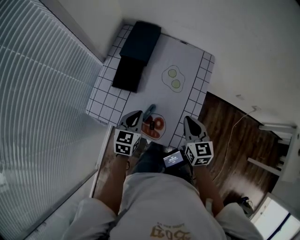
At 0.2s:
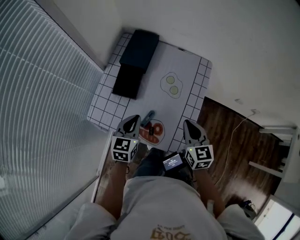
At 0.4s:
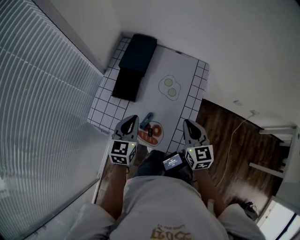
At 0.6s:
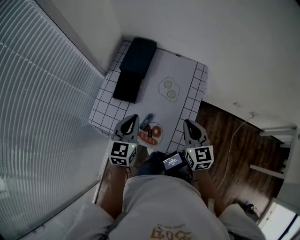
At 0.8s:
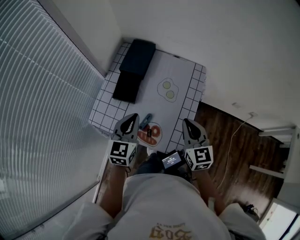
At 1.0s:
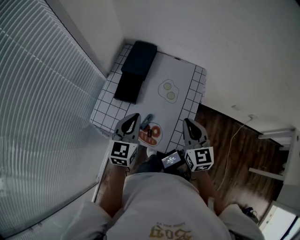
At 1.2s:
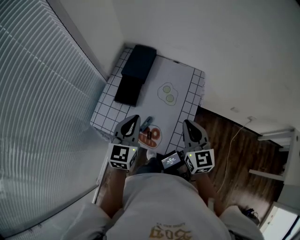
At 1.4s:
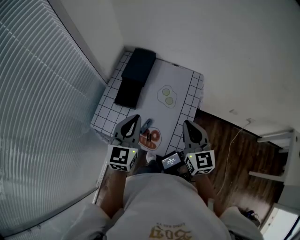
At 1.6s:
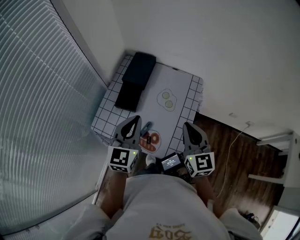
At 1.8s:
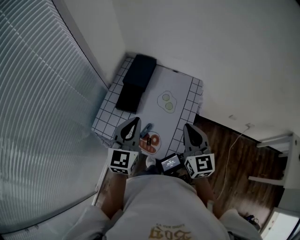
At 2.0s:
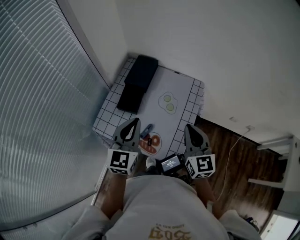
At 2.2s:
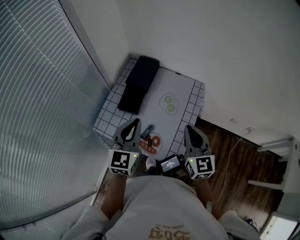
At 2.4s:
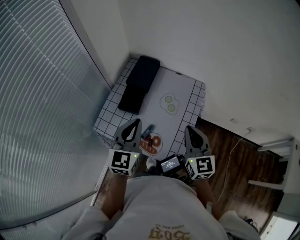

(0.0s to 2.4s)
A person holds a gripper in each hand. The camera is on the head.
0.0s - 1.2s: Both grippers move upward, approximately 15 cm. The left gripper rotates about 20 degrees.
1.2s - 2.4s: The left gripper is displaced upward by about 5 cm.

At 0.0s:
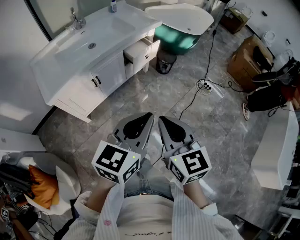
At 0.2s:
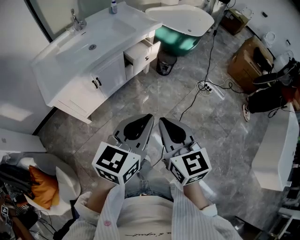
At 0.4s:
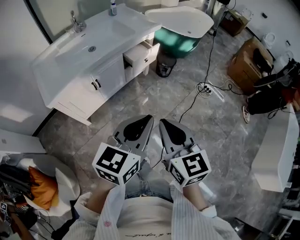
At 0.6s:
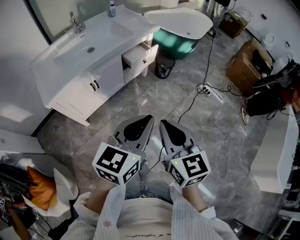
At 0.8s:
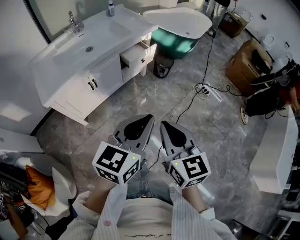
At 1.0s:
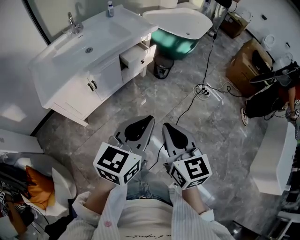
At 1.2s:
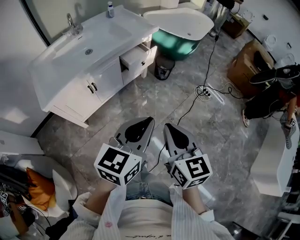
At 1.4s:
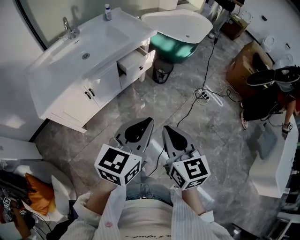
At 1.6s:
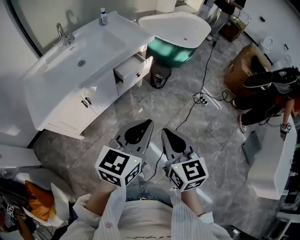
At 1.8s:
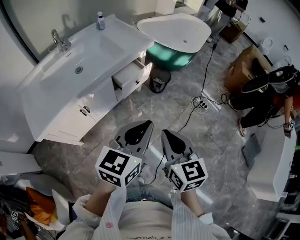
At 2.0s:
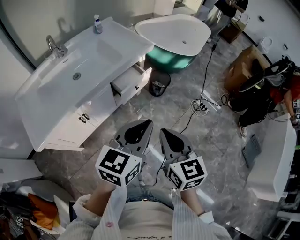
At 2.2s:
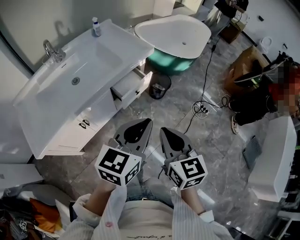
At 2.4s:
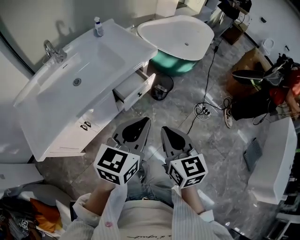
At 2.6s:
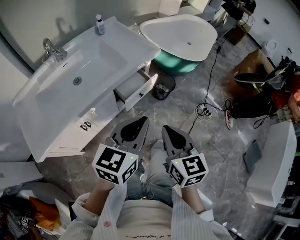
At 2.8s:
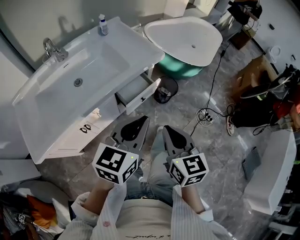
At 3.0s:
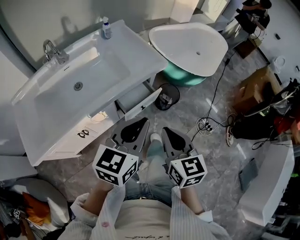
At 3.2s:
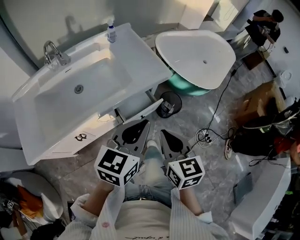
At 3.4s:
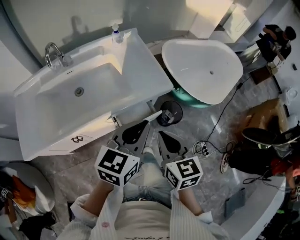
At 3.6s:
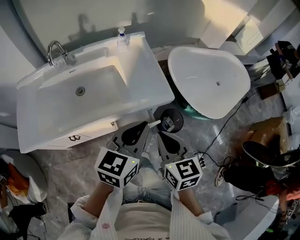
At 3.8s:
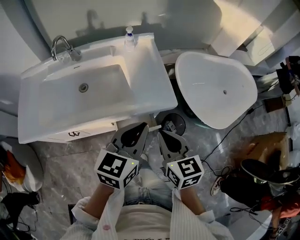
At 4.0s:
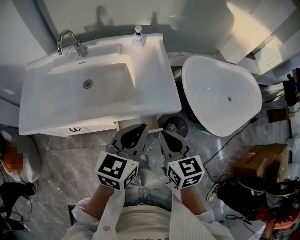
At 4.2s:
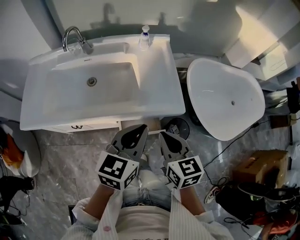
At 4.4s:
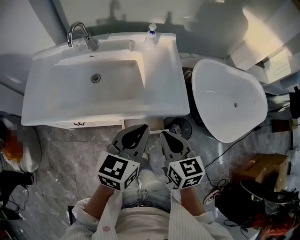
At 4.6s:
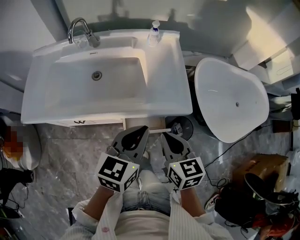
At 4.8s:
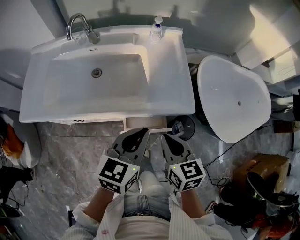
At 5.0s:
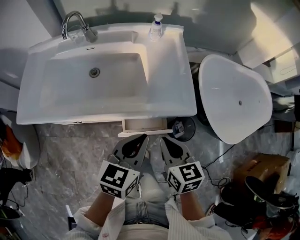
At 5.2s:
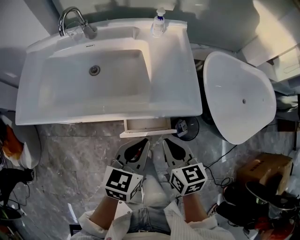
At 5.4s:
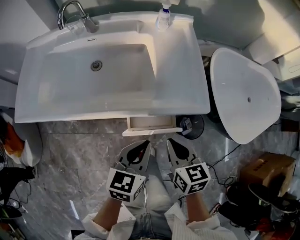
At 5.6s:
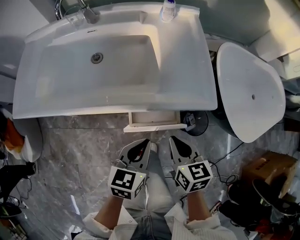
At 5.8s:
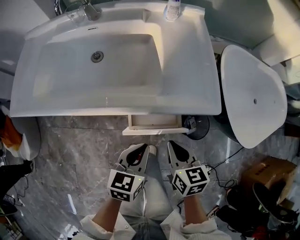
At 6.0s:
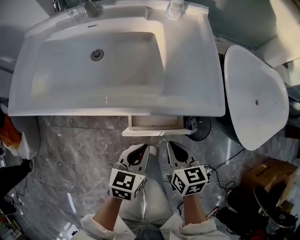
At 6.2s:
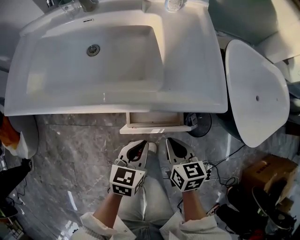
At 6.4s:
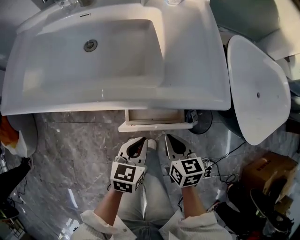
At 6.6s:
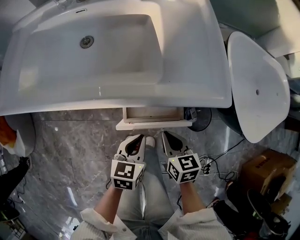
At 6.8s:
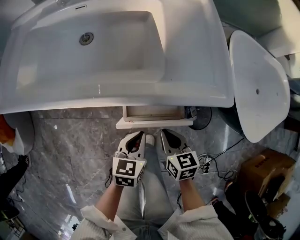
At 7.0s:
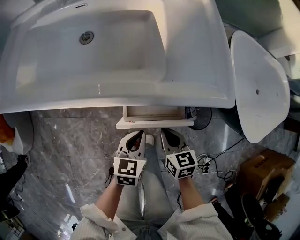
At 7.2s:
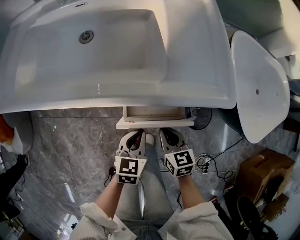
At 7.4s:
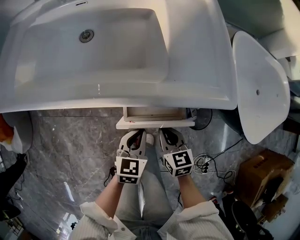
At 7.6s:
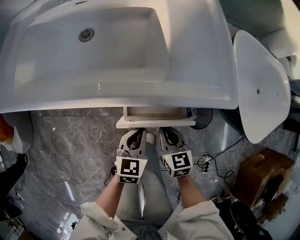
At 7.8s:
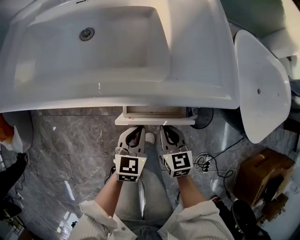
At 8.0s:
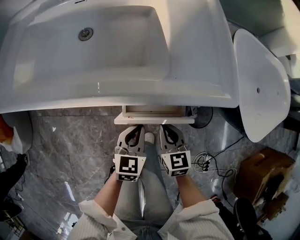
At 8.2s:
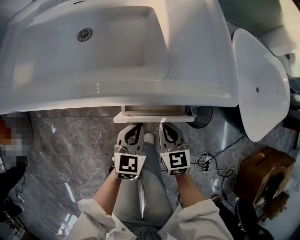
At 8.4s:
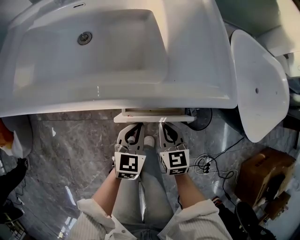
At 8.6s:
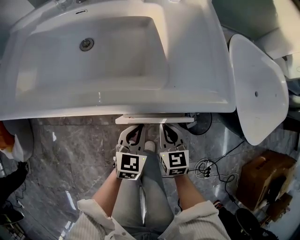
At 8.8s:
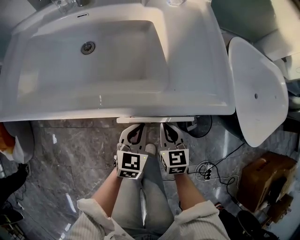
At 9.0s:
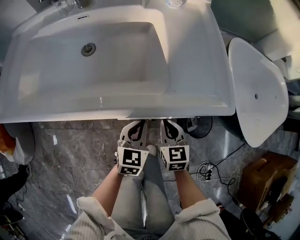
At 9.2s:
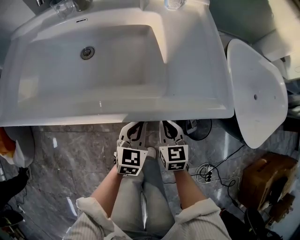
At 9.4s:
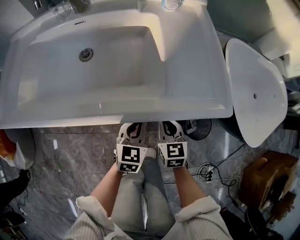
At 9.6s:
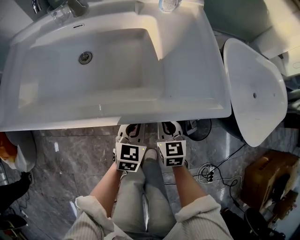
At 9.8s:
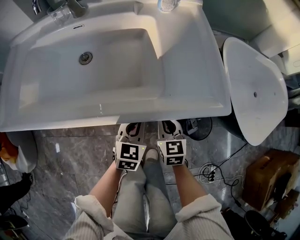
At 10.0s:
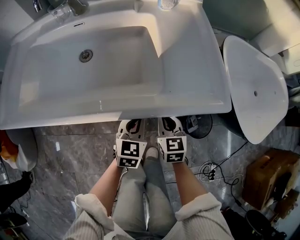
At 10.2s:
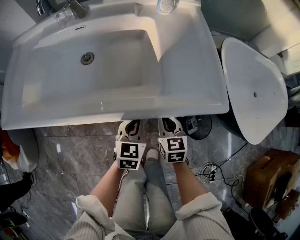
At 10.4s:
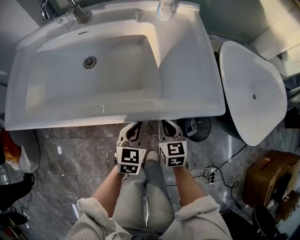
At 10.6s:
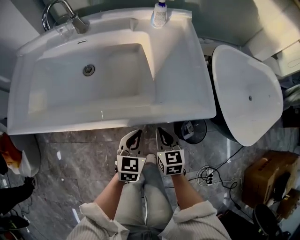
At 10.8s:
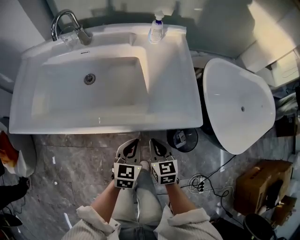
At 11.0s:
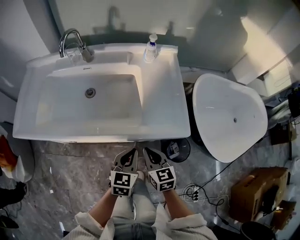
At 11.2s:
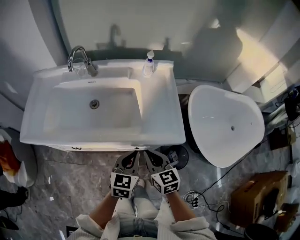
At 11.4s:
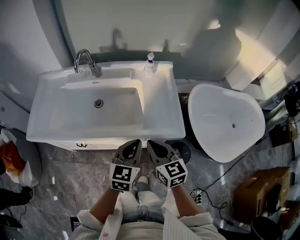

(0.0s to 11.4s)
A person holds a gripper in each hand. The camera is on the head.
0.0s - 1.4s: The right gripper heads forward and to the right, covering approximately 10 cm; the left gripper shifts approximately 5 cm forward.
1.4s - 2.8s: Both grippers travel together forward, some 30 cm.
2.8s - 4.2s: The left gripper shifts by about 20 cm, and turns by roughly 40 degrees. Meanwhile the right gripper ends up some 25 cm from where it was, and rotates approximately 40 degrees.
4.2s - 5.6s: Both grippers travel together downward, about 15 cm.
5.6s - 7.2s: The two grippers go approximately 15 cm downward.
7.2s - 8.6s: The grippers make only small movements.
8.6s - 10.0s: The two grippers go some 5 cm forward.
10.0s - 11.4s: The grippers both shift upward by some 30 cm.

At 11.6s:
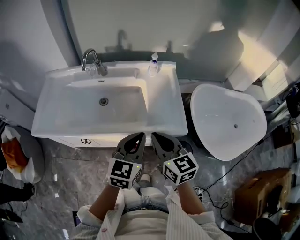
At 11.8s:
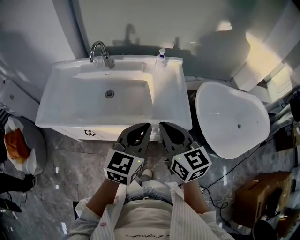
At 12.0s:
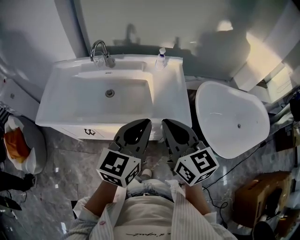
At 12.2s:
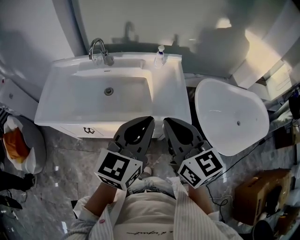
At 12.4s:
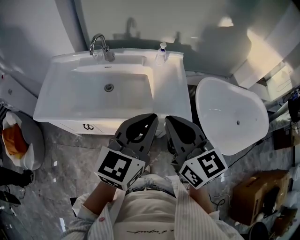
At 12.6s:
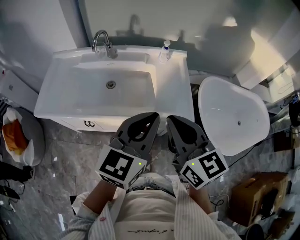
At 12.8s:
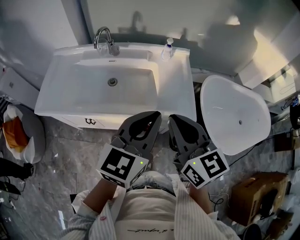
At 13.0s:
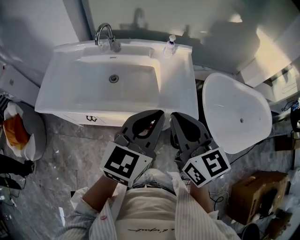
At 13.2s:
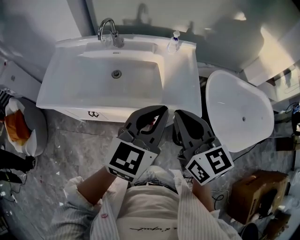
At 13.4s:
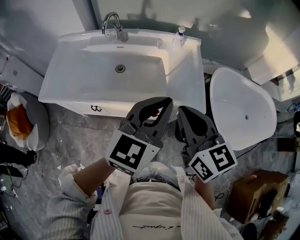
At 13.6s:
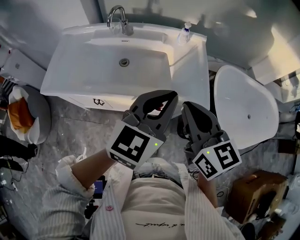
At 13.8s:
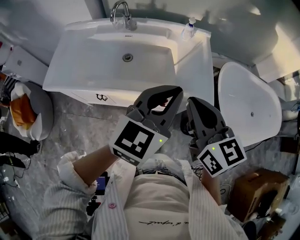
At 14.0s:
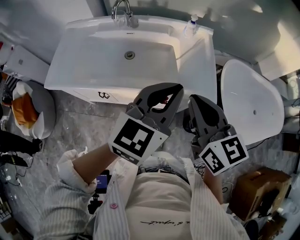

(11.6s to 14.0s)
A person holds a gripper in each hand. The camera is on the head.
11.6s - 12.8s: The grippers both shift upward by approximately 10 cm.
12.8s - 14.0s: The grippers move only a little.

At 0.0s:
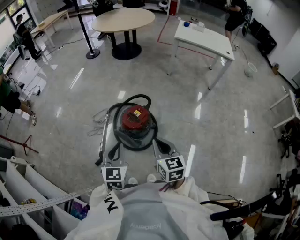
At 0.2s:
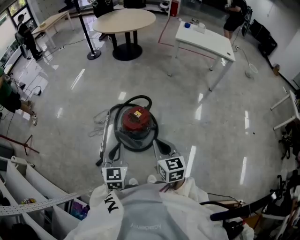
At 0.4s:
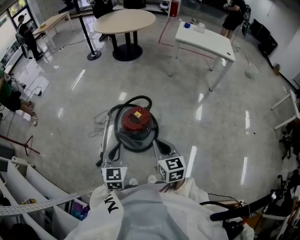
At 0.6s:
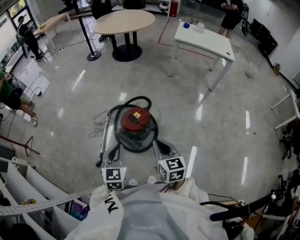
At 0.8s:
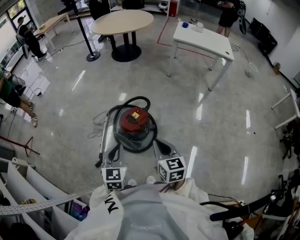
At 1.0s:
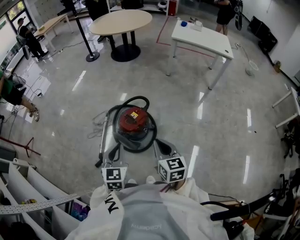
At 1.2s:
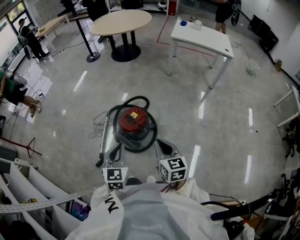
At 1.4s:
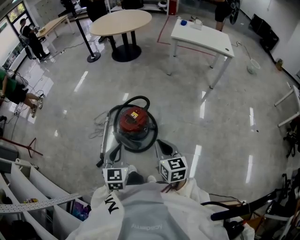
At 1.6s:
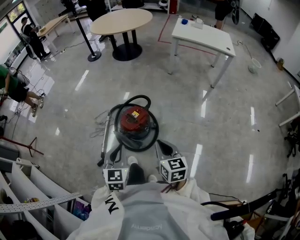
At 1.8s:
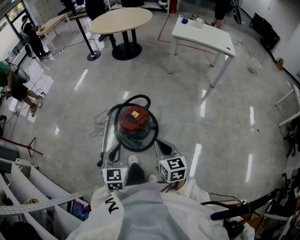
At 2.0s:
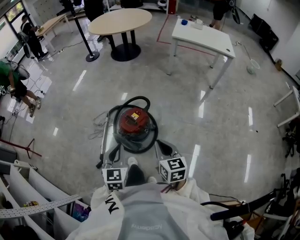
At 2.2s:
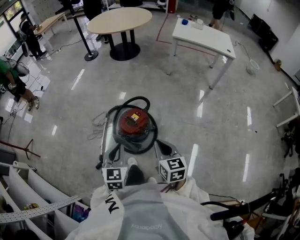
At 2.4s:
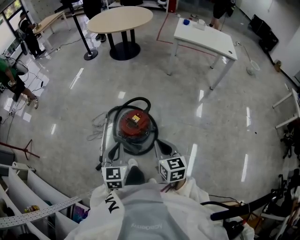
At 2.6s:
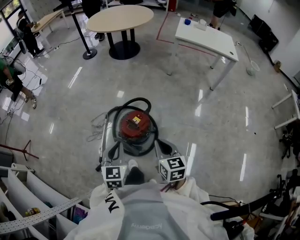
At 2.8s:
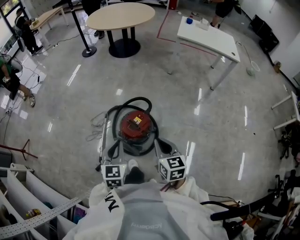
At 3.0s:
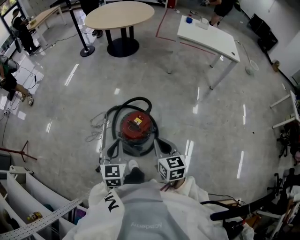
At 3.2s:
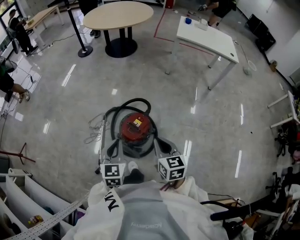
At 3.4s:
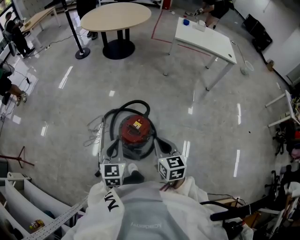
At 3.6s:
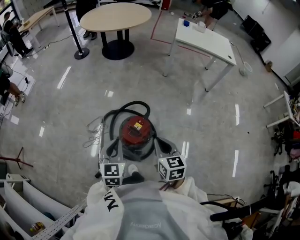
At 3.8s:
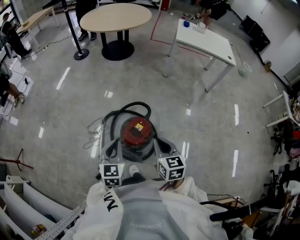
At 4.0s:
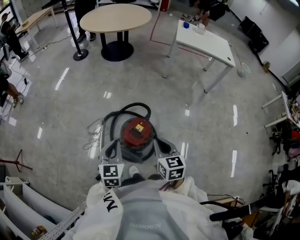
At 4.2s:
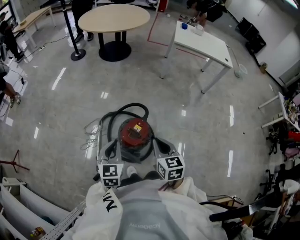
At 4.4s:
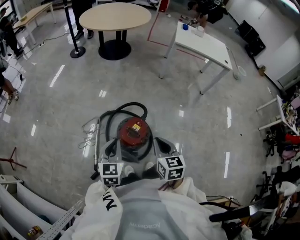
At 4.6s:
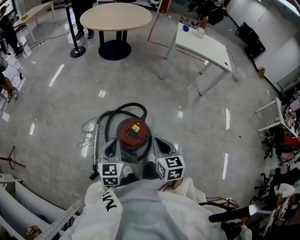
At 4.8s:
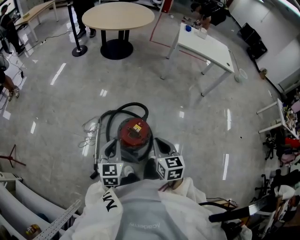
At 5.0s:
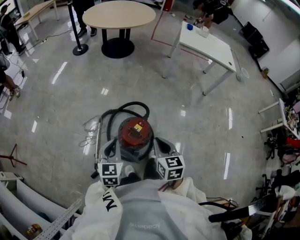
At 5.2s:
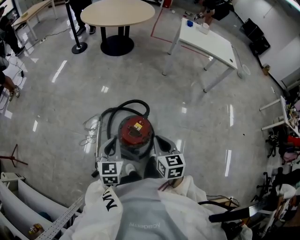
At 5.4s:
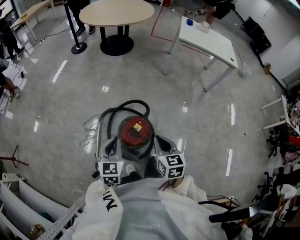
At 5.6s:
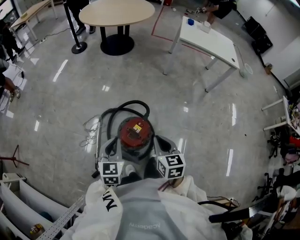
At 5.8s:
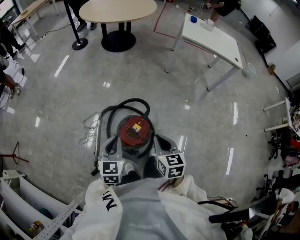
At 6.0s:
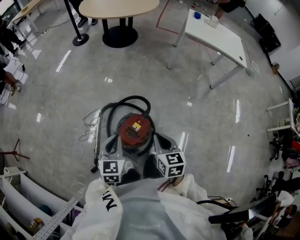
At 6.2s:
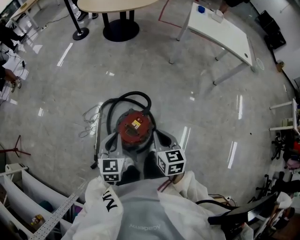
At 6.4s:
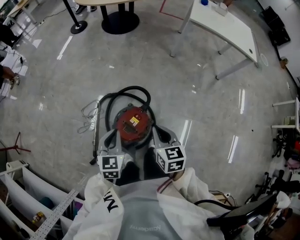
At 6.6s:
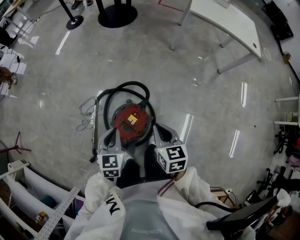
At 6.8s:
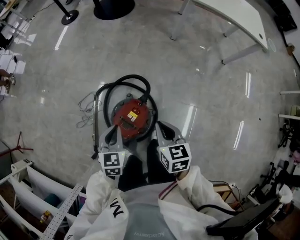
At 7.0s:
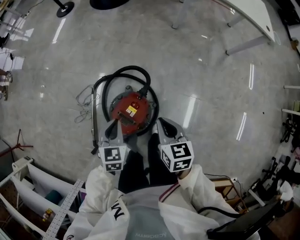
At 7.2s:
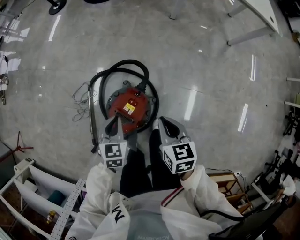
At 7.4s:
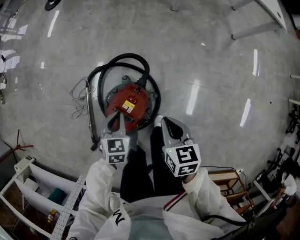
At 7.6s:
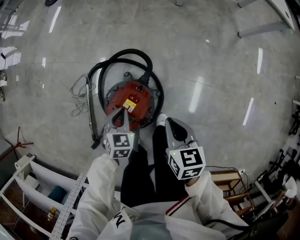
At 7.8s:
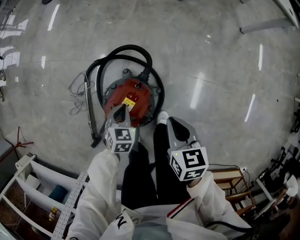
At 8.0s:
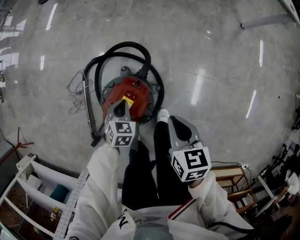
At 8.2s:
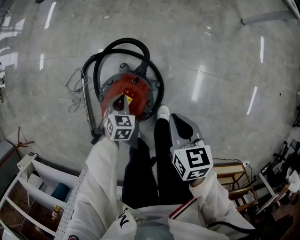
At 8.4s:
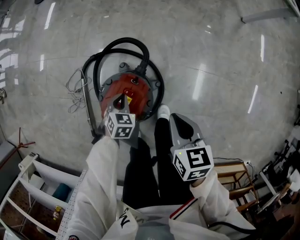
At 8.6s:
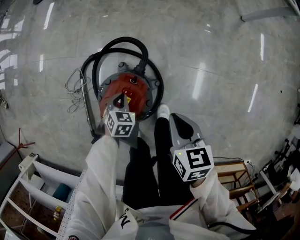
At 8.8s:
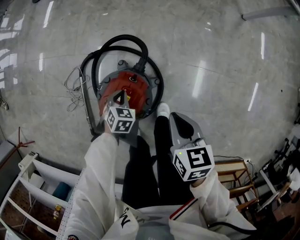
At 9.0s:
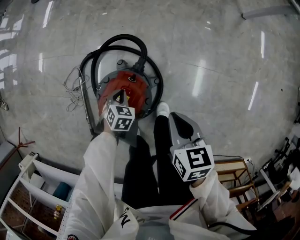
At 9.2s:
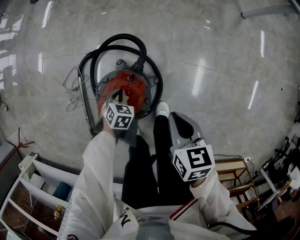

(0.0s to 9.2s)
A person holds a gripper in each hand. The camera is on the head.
0.0s - 1.6s: The right gripper goes approximately 5 cm to the right.
1.6s - 3.0s: Both grippers move forward and to the left, some 15 cm.
3.0s - 4.6s: The left gripper is displaced forward by some 5 cm, while the right gripper ends up approximately 5 cm from where it was.
4.6s - 6.2s: Both grippers travel together forward, some 10 cm.
6.2s - 7.6s: The right gripper travels downward and to the right by about 20 cm. The left gripper shifts approximately 25 cm downward, and swivels about 30 degrees.
7.6s - 9.2s: The left gripper shifts approximately 15 cm downward.
